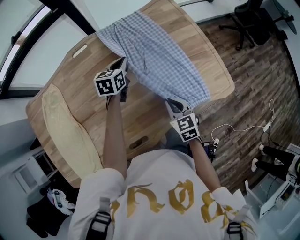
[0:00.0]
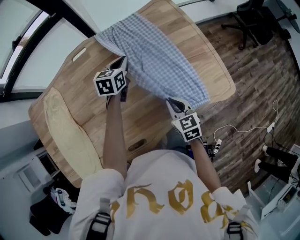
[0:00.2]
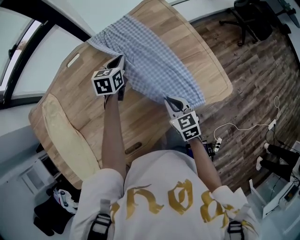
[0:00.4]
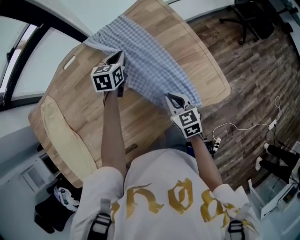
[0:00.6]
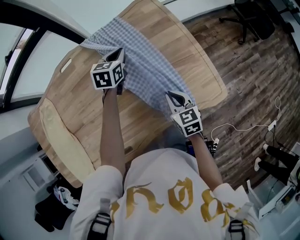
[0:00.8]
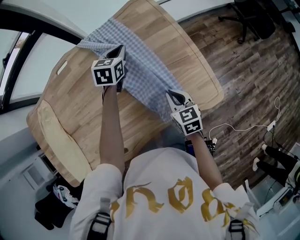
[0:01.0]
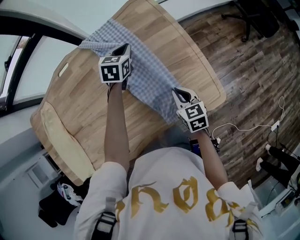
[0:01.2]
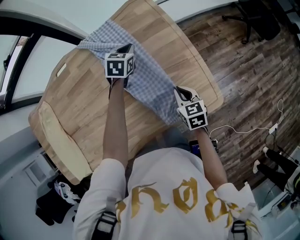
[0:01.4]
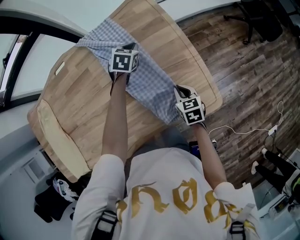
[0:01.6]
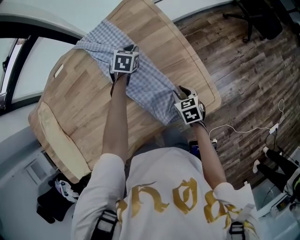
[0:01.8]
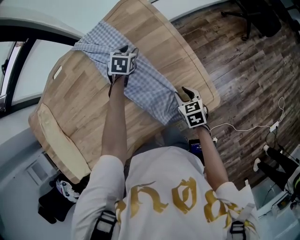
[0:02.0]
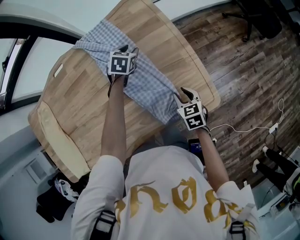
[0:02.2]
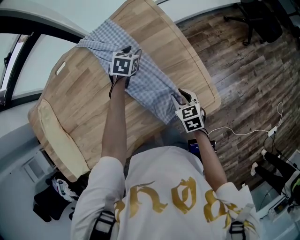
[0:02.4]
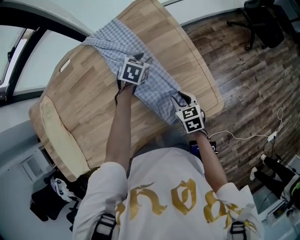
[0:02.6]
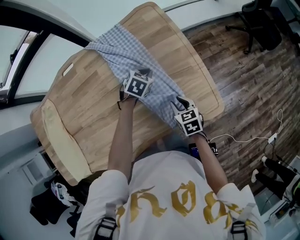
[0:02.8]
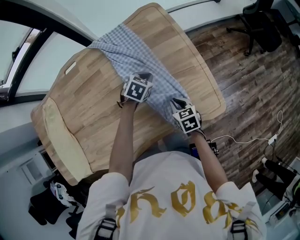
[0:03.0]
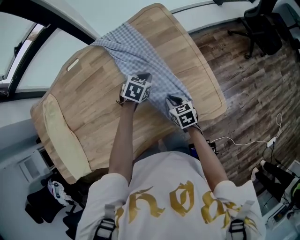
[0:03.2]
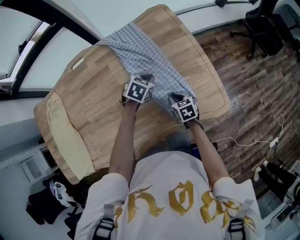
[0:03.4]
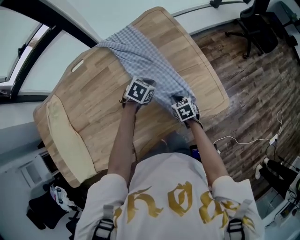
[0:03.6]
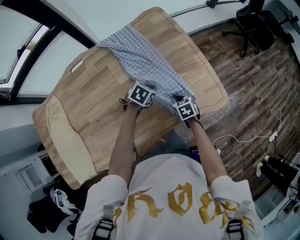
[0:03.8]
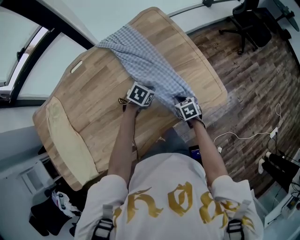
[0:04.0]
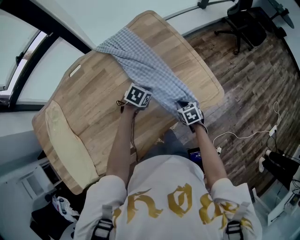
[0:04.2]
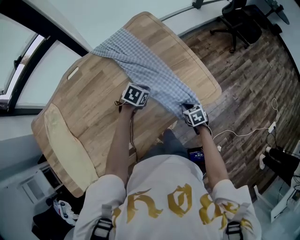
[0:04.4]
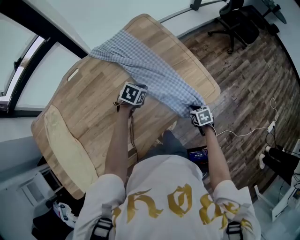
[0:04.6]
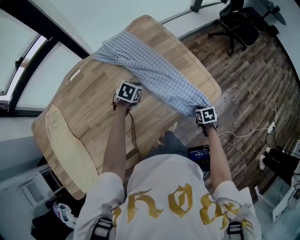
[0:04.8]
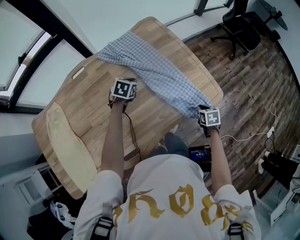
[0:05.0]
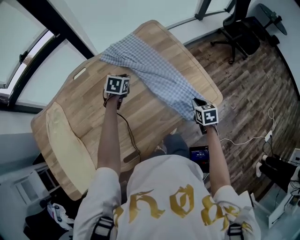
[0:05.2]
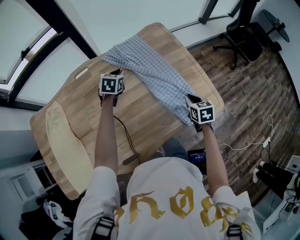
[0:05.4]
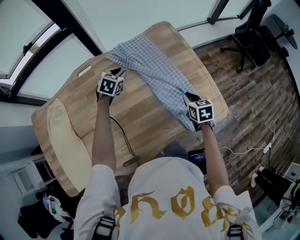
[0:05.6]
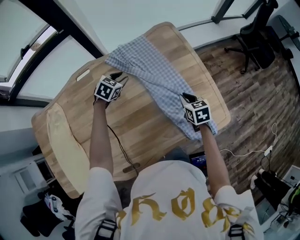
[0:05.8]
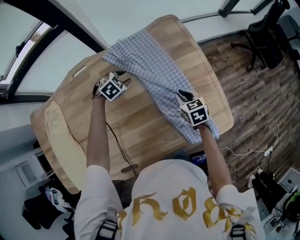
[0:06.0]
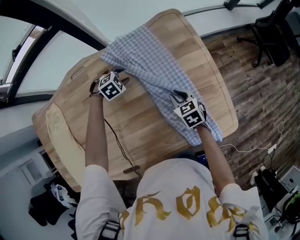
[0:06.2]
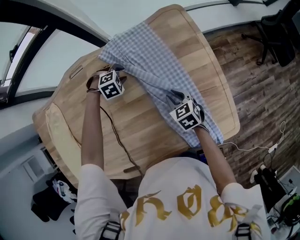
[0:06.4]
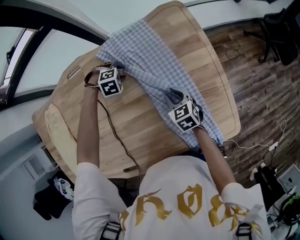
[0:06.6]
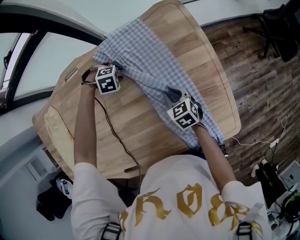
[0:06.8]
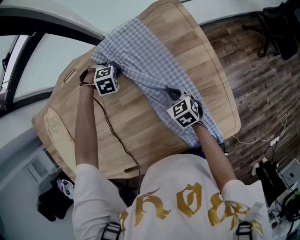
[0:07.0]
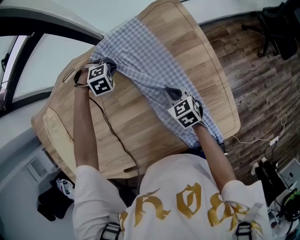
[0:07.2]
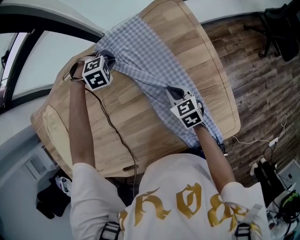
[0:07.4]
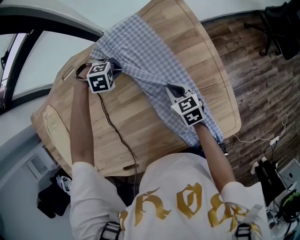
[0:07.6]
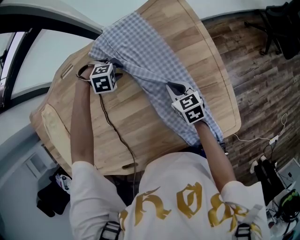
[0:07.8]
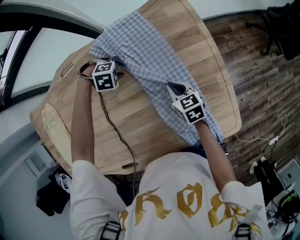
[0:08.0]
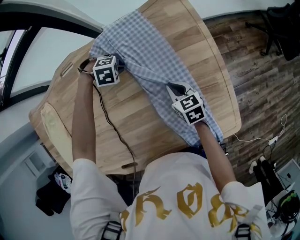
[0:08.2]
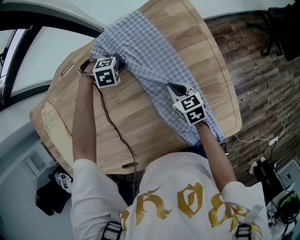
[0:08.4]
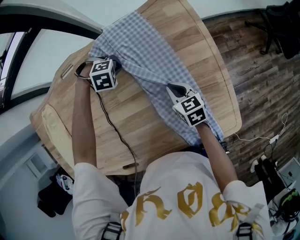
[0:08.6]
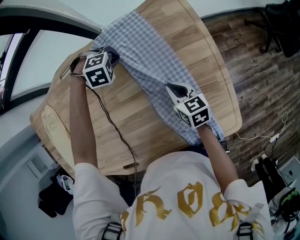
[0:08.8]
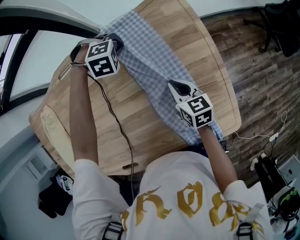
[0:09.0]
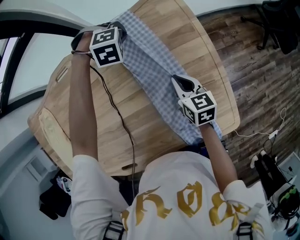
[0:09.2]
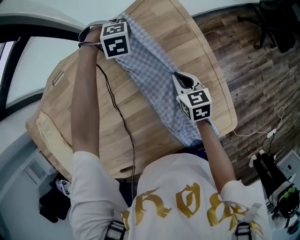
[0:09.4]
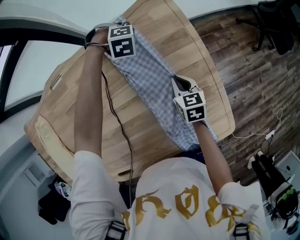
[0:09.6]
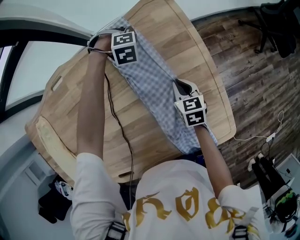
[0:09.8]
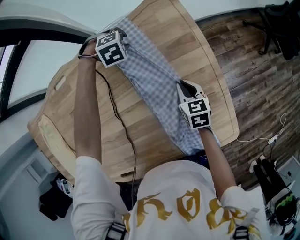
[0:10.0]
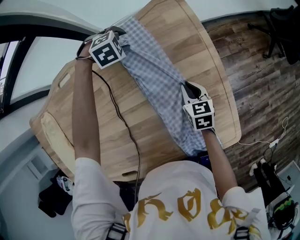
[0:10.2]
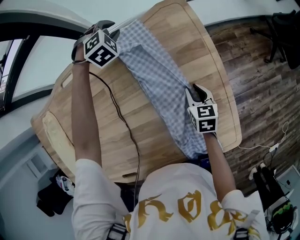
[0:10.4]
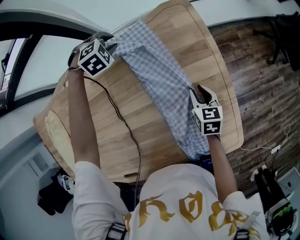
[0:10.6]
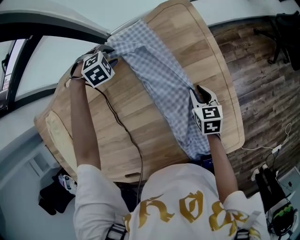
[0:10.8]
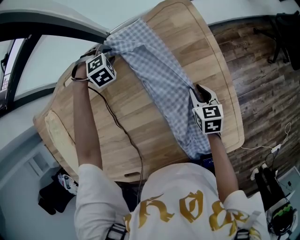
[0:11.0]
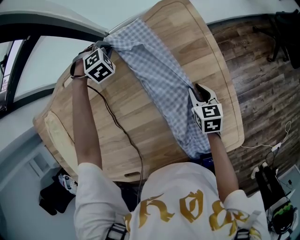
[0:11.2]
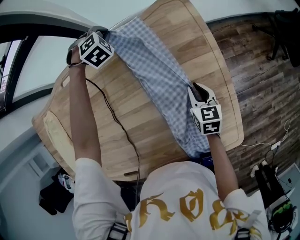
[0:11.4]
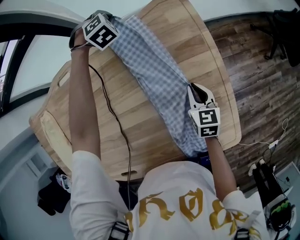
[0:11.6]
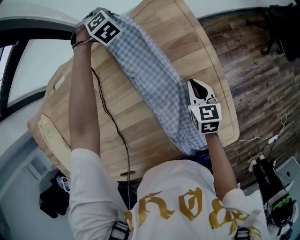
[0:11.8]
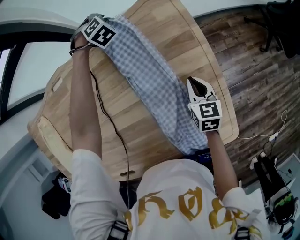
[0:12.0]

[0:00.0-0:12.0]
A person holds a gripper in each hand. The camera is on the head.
0:00.0 to 0:01.6: The two grippers go roughly 30 cm to the right and forward. The left gripper rotates some 30 degrees.
0:01.6 to 0:03.0: The right gripper moves to the left, about 5 cm, and opens and closes again. The left gripper is displaced backward by some 15 cm, and opens and closes again.
0:03.0 to 0:04.4: The right gripper moves backward, to the right and downward, roughly 10 cm. The left gripper moves backward, some 10 cm.
0:04.4 to 0:06.0: The right gripper shifts roughly 25 cm forward, to the left and upward, while the left gripper travels to the left and forward by roughly 25 cm, changes its angle by about 20 degrees, and opens up.
0:06.0 to 0:07.6: The left gripper swivels roughly 40 degrees, and closes; the right gripper changes place by some 10 cm.
0:07.6 to 0:09.0: The left gripper moves approximately 10 cm, and opens, then closes again.
0:09.0 to 0:10.4: The right gripper ends up about 10 cm from where it was, and opens, while the left gripper reaches roughly 5 cm downward, then returns, swivels about 30 degrees, and opens its fingers.
0:10.4 to 0:12.0: The right gripper closes its fingers; the left gripper swings up and down, approximately 5 cm each way, with 2 reversals, and closes up.

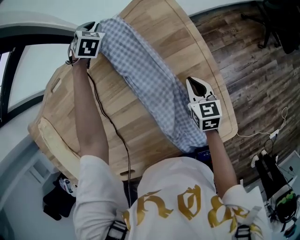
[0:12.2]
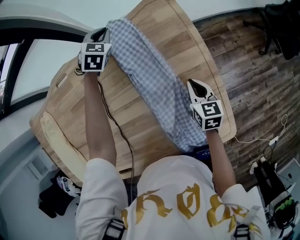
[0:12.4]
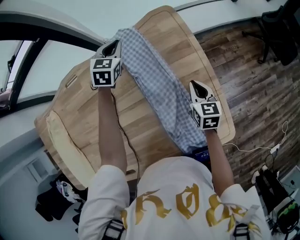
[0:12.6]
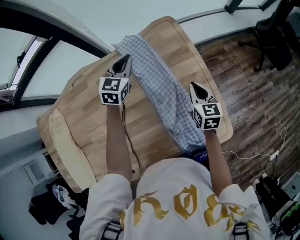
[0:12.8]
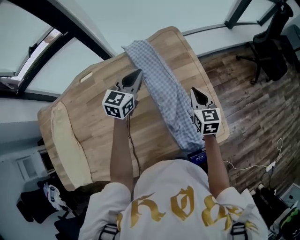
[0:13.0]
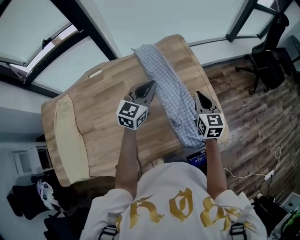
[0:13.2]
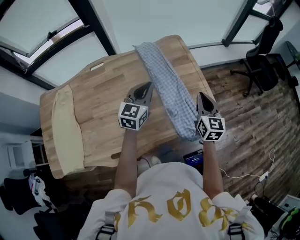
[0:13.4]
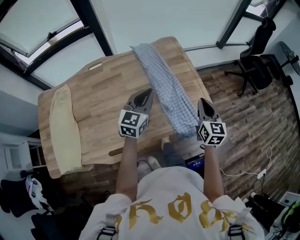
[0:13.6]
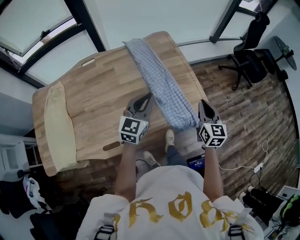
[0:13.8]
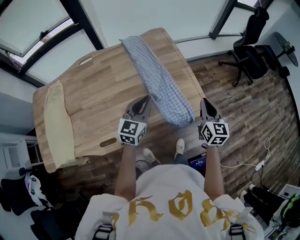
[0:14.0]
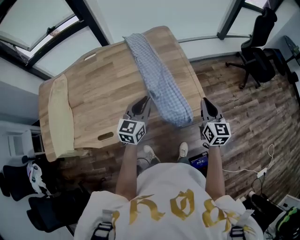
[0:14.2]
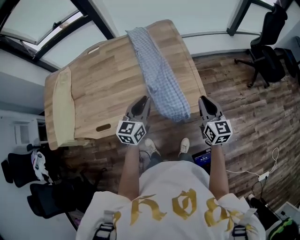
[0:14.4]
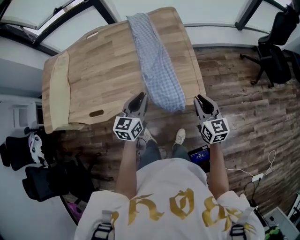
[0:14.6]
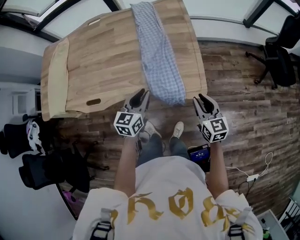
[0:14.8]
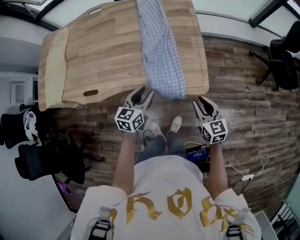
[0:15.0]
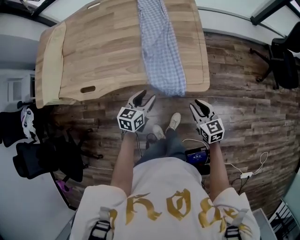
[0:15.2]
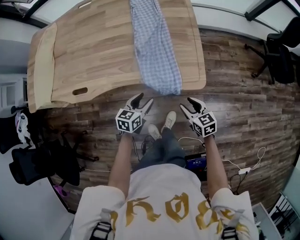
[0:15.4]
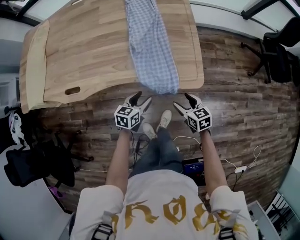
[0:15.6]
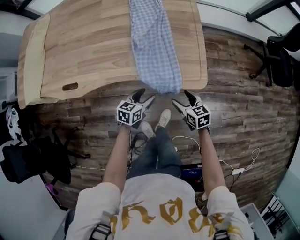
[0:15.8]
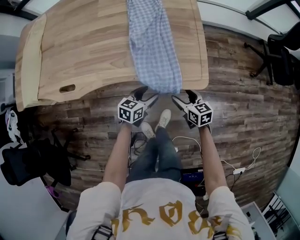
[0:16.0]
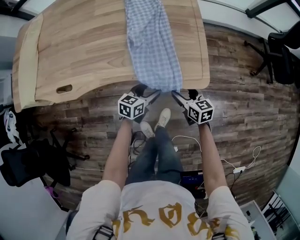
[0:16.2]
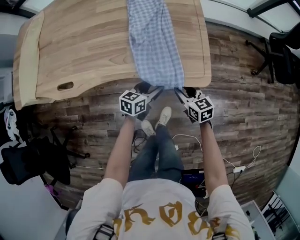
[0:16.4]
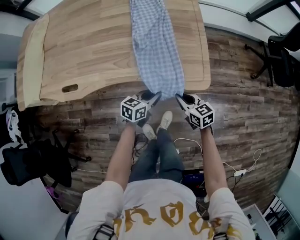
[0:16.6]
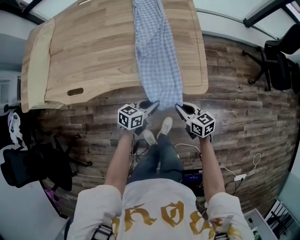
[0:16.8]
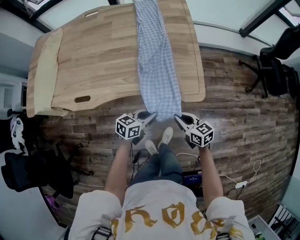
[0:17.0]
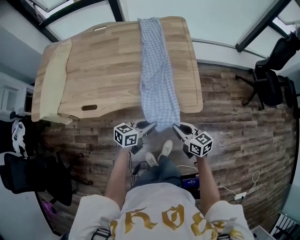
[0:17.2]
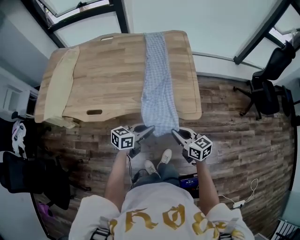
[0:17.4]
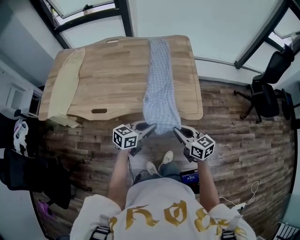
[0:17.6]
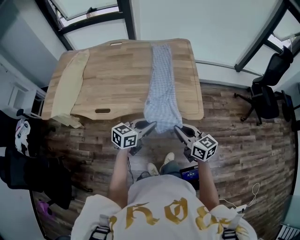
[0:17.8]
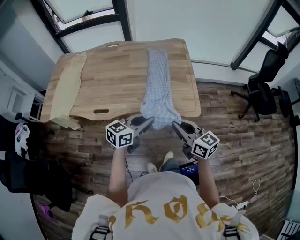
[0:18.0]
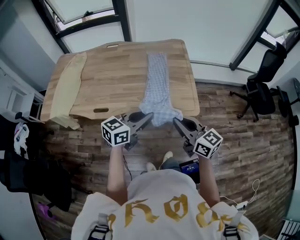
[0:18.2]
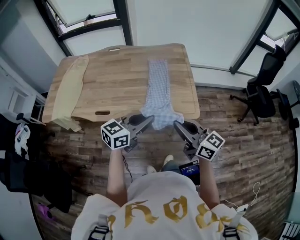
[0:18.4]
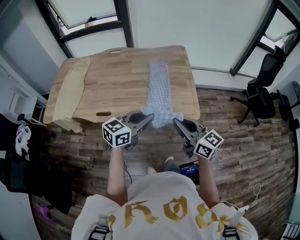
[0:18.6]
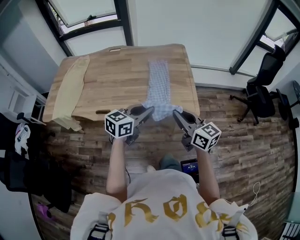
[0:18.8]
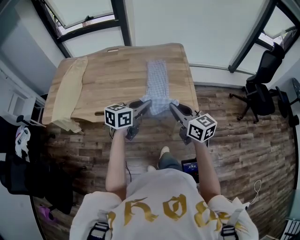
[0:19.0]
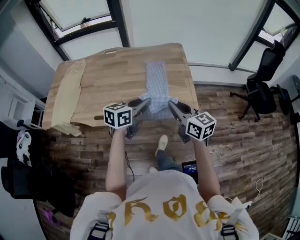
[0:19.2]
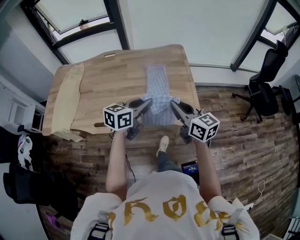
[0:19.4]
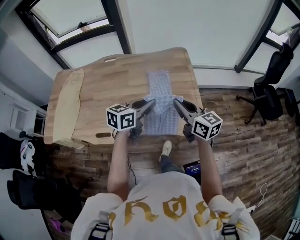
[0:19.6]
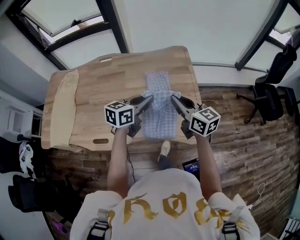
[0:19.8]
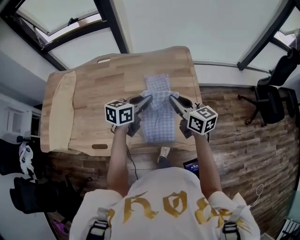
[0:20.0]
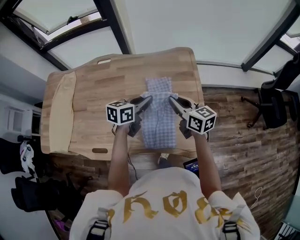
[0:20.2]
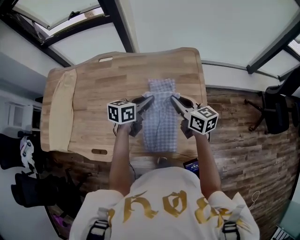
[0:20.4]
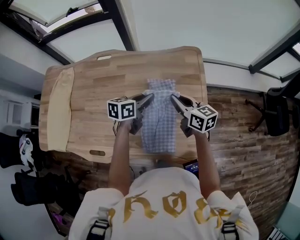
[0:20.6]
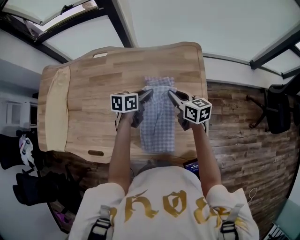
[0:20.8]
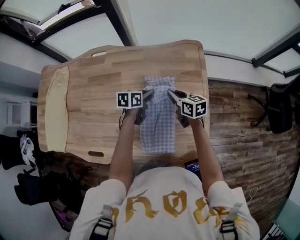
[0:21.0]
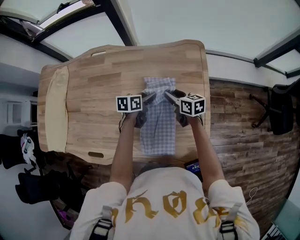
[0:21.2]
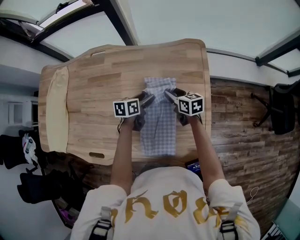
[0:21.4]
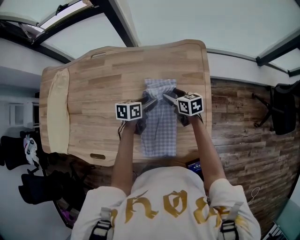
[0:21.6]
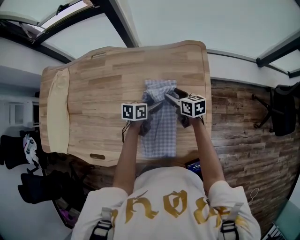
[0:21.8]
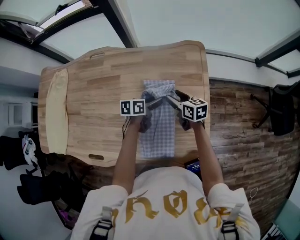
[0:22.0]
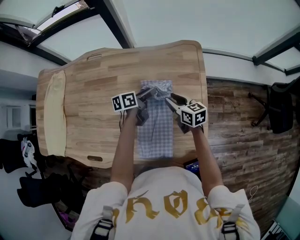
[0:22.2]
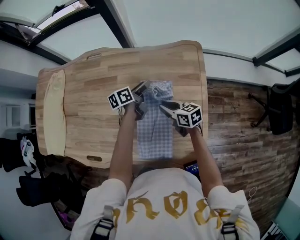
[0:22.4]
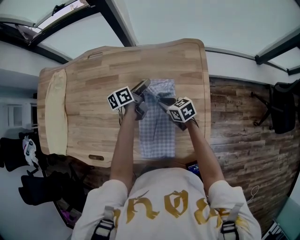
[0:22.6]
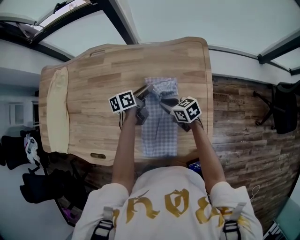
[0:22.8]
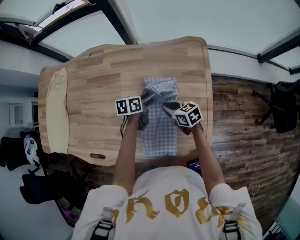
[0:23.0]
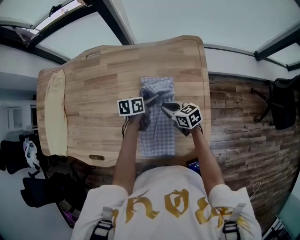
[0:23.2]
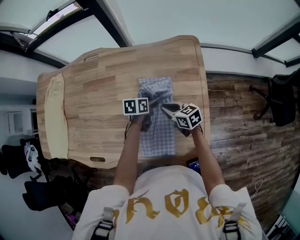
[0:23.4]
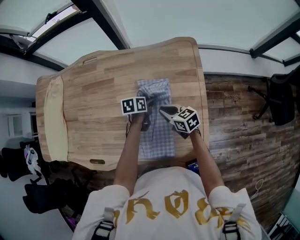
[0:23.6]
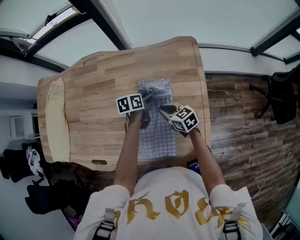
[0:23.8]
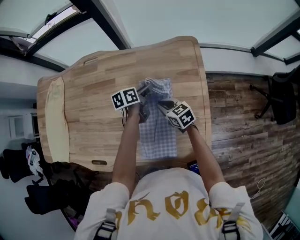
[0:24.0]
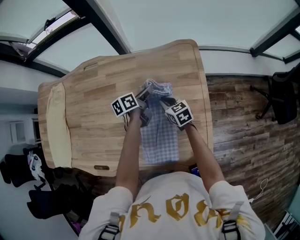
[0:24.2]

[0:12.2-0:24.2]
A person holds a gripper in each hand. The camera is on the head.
0:12.2 to 0:13.8: The right gripper goes about 40 cm backward and upward, and turns by roughly 30 degrees. Meanwhile the left gripper is displaced backward and upward by some 70 cm, and points its fingers roughly 40 degrees further upward.
0:13.8 to 0:15.2: The two grippers go about 20 cm downward. The right gripper changes its angle by some 50 degrees. The left gripper turns by about 40 degrees, and opens.
0:15.2 to 0:16.6: The right gripper shifts about 10 cm downward and to the left, and opens and closes again. The left gripper goes roughly 15 cm downward and to the right, and closes.
0:16.6 to 0:18.2: Both grippers move upward, roughly 35 cm. The left gripper turns by roughly 30 degrees, while the right gripper rotates approximately 30 degrees.
0:18.2 to 0:19.8: Both grippers travel together forward, about 30 cm.
0:19.8 to 0:21.2: The left gripper travels downward and forward by some 35 cm, swivels about 30 degrees, and opens; the right gripper goes about 35 cm forward and downward, changes its angle by about 30 degrees, and opens up.
0:21.2 to 0:22.6: The right gripper moves some 5 cm, swivels roughly 20 degrees, and opens, then closes again; the left gripper moves forward, about 5 cm, and turns by approximately 30 degrees.
0:22.6 to 0:24.2: The left gripper travels backward and back again, about 10 cm each way, and closes up.
